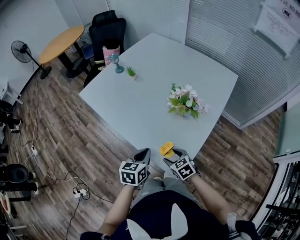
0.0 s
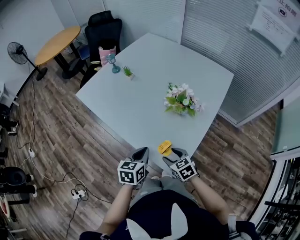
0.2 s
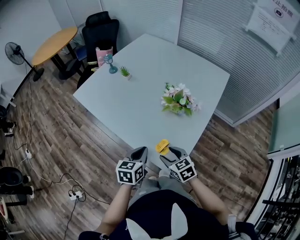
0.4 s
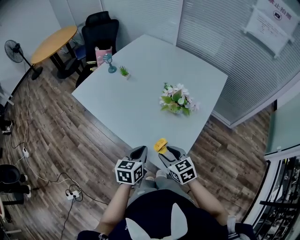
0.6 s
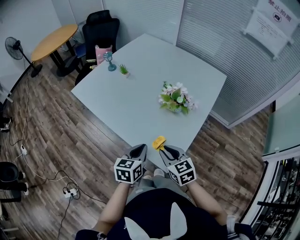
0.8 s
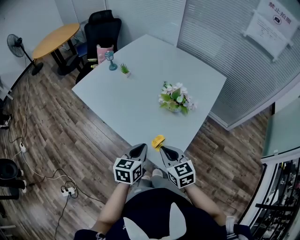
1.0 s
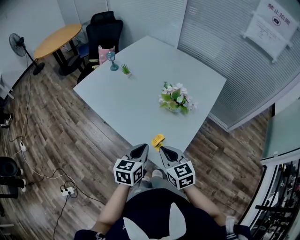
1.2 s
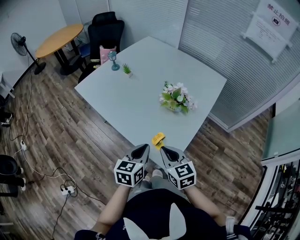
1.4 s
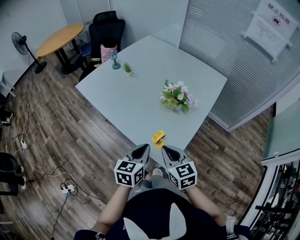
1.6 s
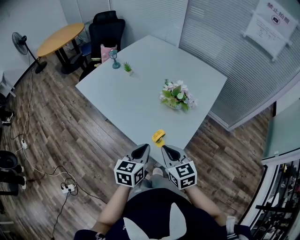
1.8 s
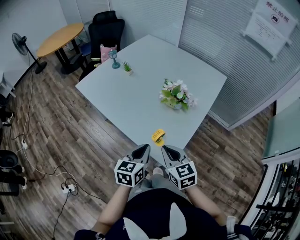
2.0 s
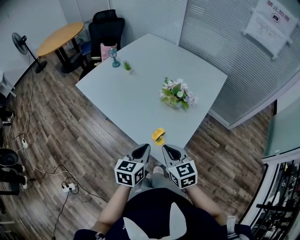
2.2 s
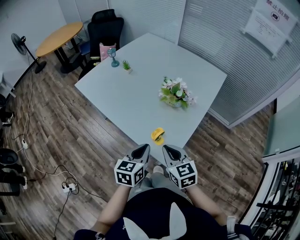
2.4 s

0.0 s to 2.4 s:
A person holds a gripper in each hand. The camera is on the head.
0.0 to 1.2 s: The left gripper heads upward, covering about 5 cm. The right gripper goes about 15 cm upward, turns by some 20 degrees, and closes its fingers.
1.2 to 2.4 s: The grippers move only a little.

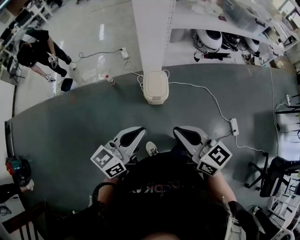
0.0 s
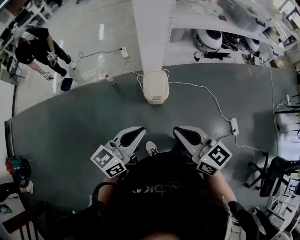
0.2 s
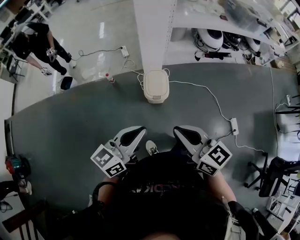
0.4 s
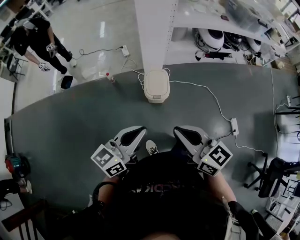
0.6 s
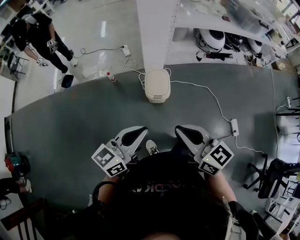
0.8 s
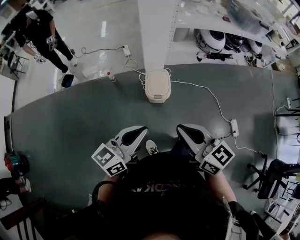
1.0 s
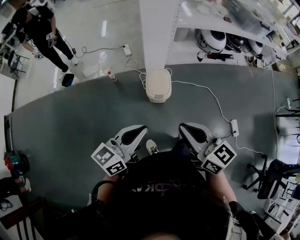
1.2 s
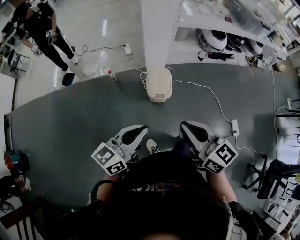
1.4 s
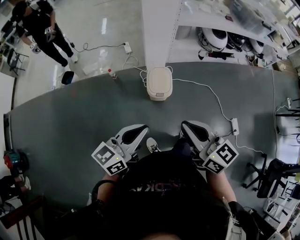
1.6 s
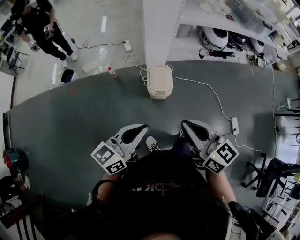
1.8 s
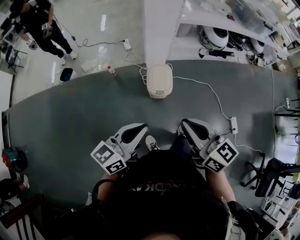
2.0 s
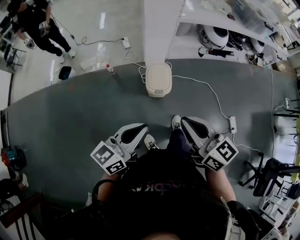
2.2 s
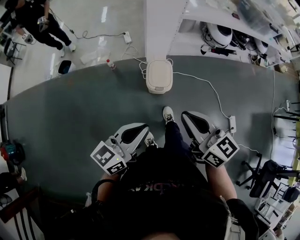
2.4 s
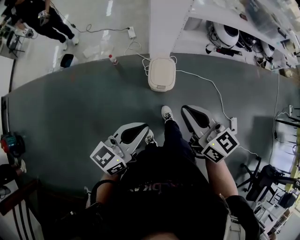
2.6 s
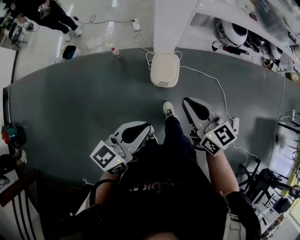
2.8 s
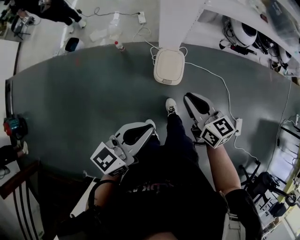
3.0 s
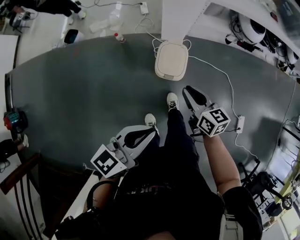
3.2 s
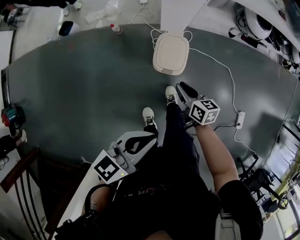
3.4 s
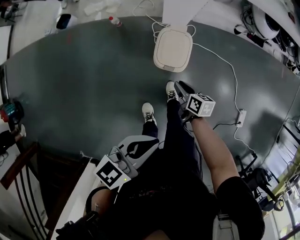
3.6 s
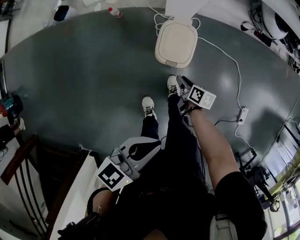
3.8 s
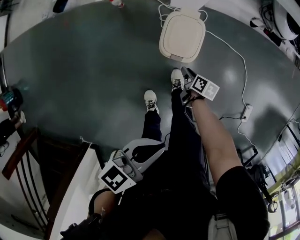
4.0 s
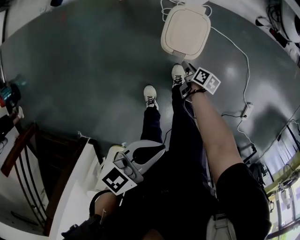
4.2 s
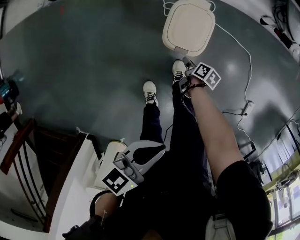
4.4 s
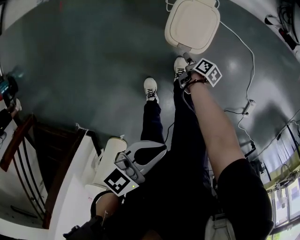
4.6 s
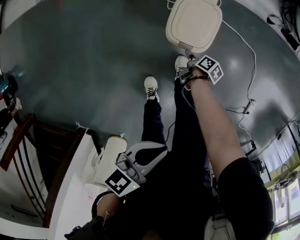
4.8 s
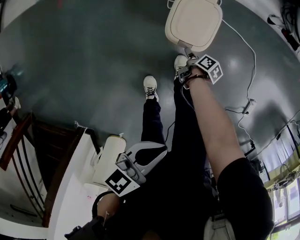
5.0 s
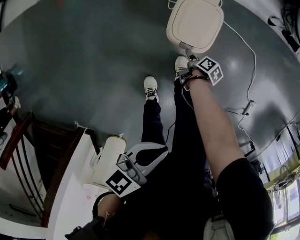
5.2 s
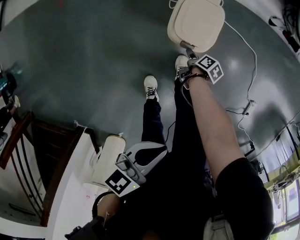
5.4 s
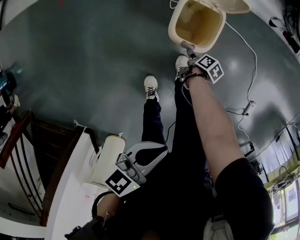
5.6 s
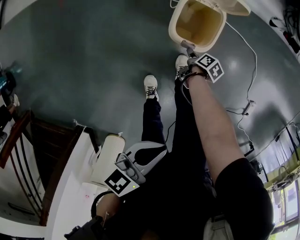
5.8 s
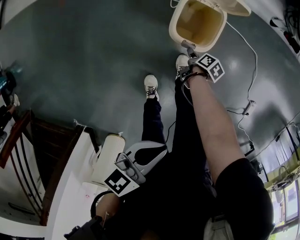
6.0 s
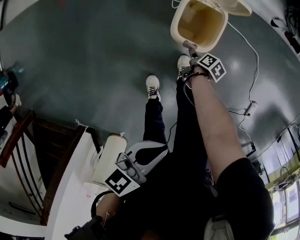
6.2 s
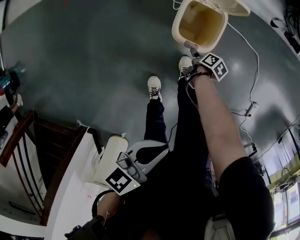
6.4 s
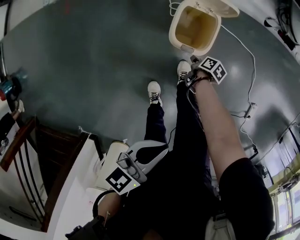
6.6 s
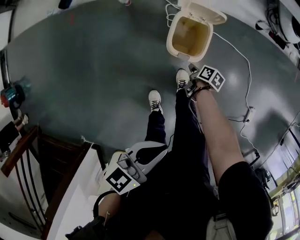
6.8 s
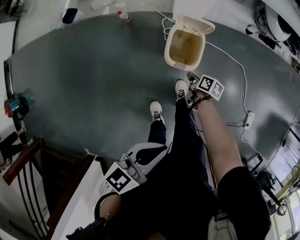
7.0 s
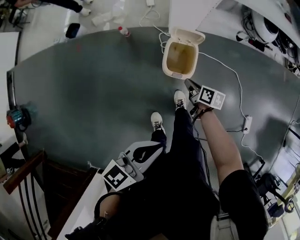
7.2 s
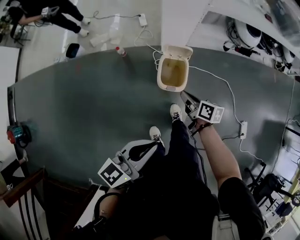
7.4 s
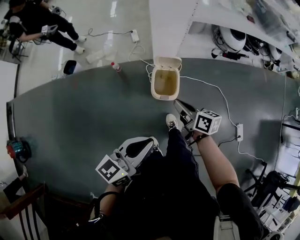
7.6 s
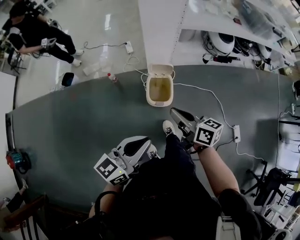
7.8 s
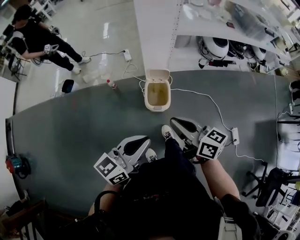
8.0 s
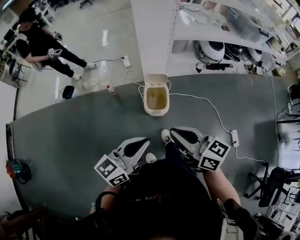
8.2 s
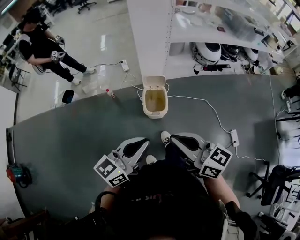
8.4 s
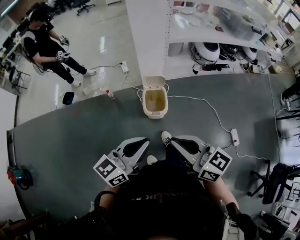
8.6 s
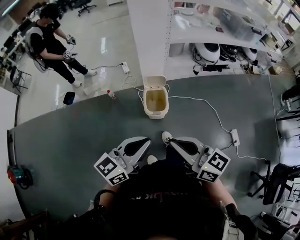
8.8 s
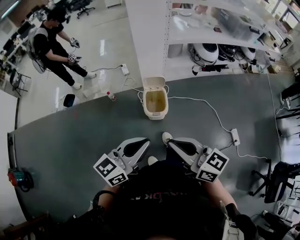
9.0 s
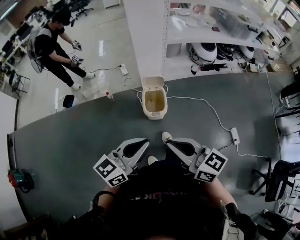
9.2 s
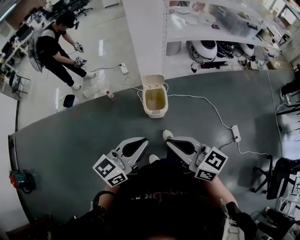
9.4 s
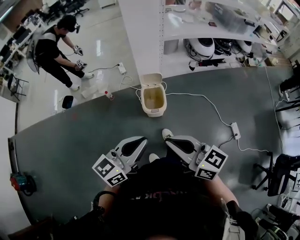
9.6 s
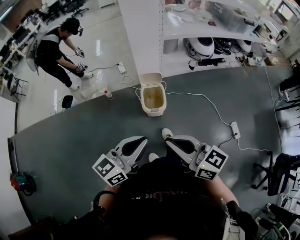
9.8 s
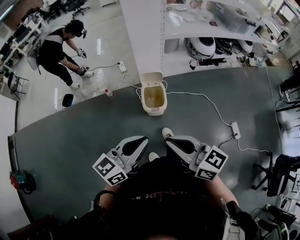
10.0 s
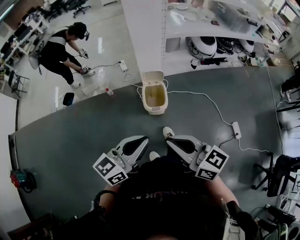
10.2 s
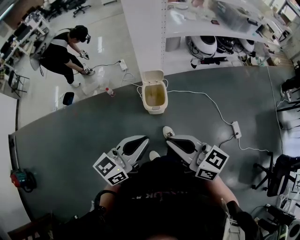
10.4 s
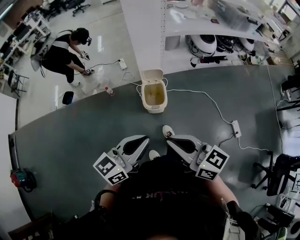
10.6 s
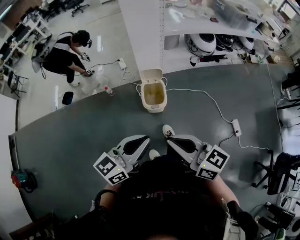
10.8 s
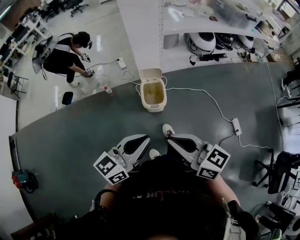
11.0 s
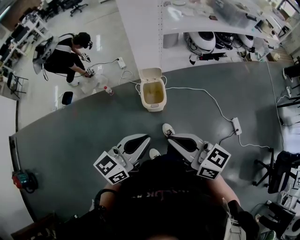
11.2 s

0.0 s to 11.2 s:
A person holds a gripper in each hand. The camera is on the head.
0.0 to 1.6 s: There are only small adjustments of the grippers.
1.6 to 3.2 s: The left gripper goes roughly 10 cm forward and to the right; the right gripper is displaced downward and forward by about 30 cm.
3.2 to 4.8 s: The left gripper is displaced downward by roughly 20 cm, and rotates some 20 degrees. The right gripper is displaced downward by about 50 cm, rolls clockwise, seen from behind, by roughly 60 degrees, and opens.
4.8 to 6.4 s: The grippers make only small movements.
6.4 to 8.0 s: The left gripper is displaced upward by about 25 cm, and swivels about 30 degrees. The right gripper moves upward, roughly 60 cm, tips its fingers upward by some 50 degrees, and closes its fingers.
8.0 to 9.6 s: The left gripper shifts some 5 cm backward. Meanwhile the right gripper shifts approximately 15 cm backward and upward.
9.6 to 11.2 s: The grippers stay close to where they were, moving slightly.

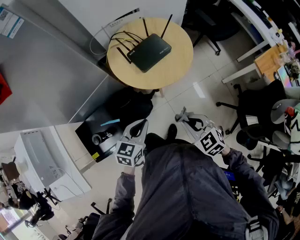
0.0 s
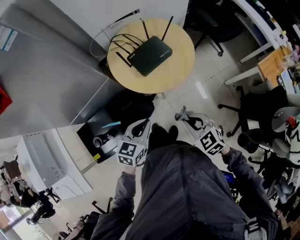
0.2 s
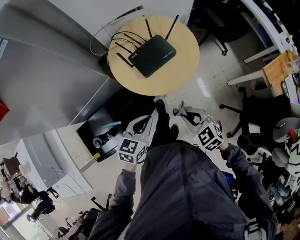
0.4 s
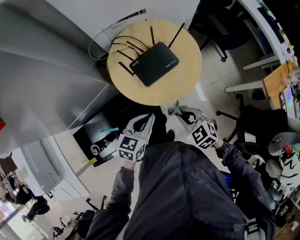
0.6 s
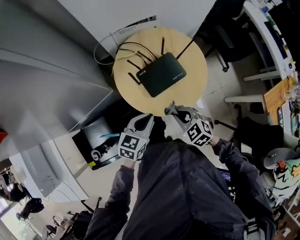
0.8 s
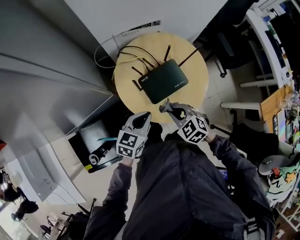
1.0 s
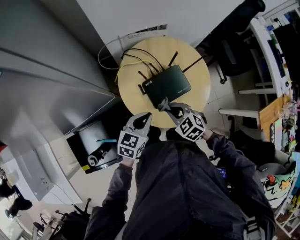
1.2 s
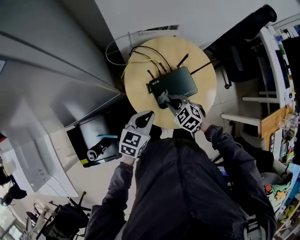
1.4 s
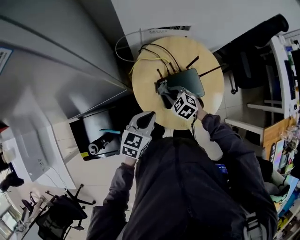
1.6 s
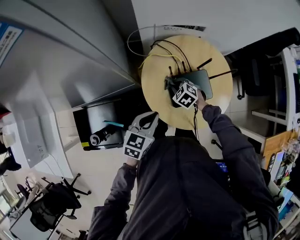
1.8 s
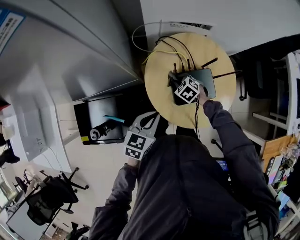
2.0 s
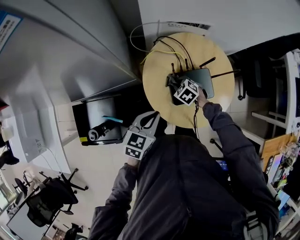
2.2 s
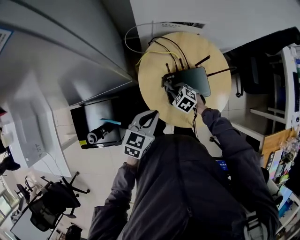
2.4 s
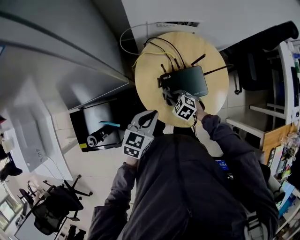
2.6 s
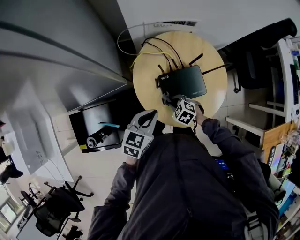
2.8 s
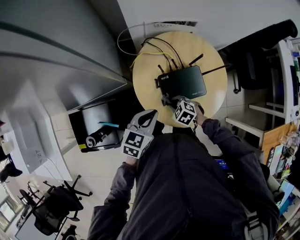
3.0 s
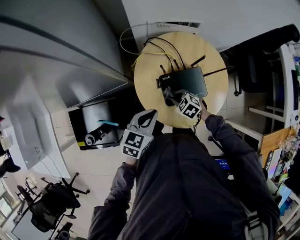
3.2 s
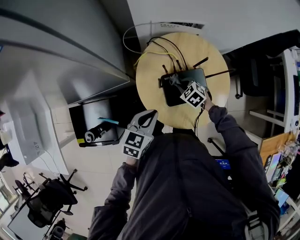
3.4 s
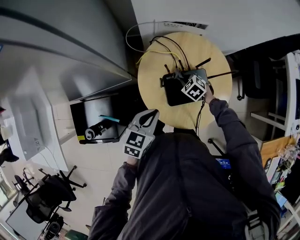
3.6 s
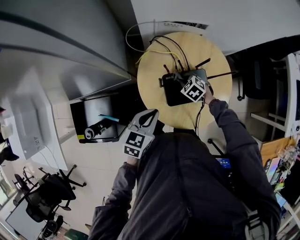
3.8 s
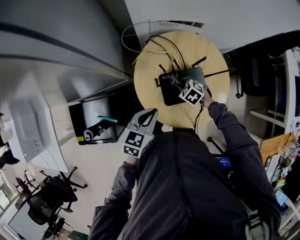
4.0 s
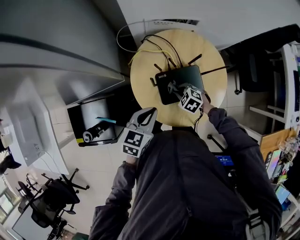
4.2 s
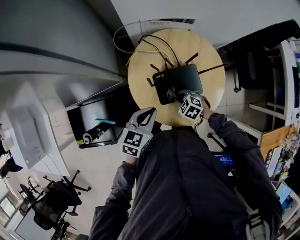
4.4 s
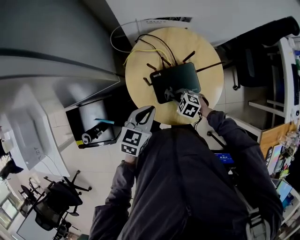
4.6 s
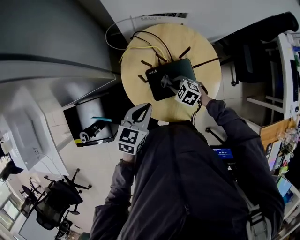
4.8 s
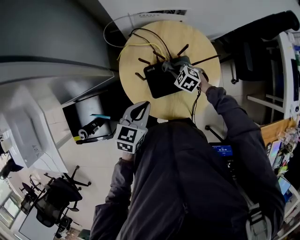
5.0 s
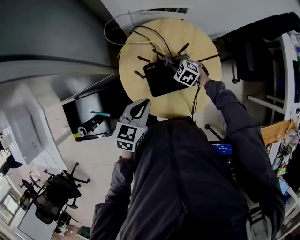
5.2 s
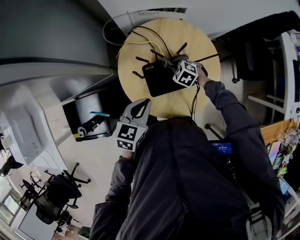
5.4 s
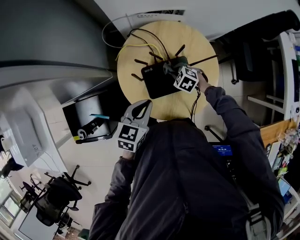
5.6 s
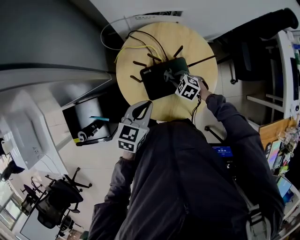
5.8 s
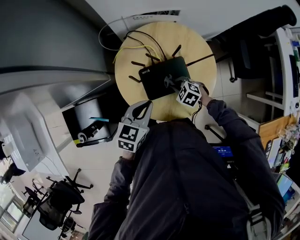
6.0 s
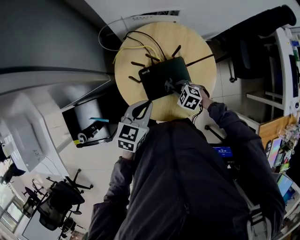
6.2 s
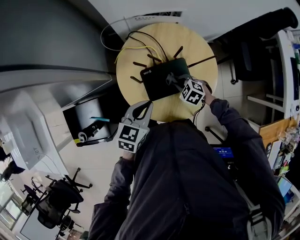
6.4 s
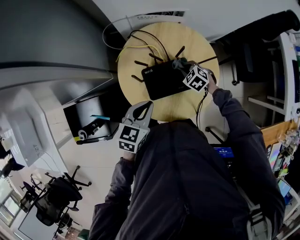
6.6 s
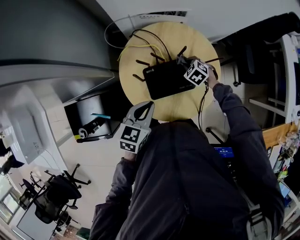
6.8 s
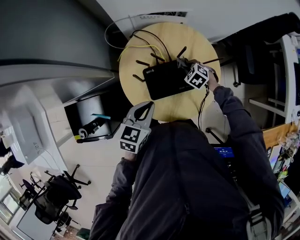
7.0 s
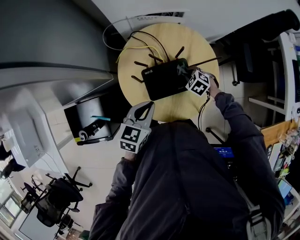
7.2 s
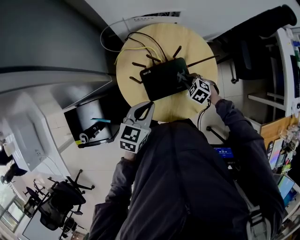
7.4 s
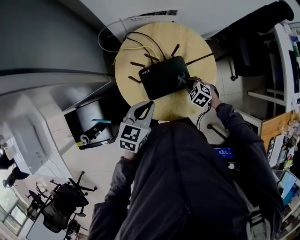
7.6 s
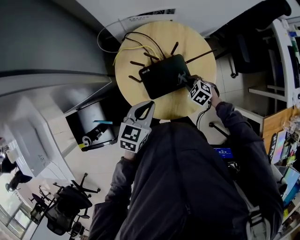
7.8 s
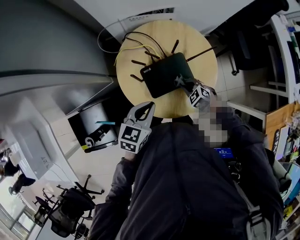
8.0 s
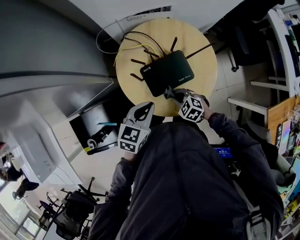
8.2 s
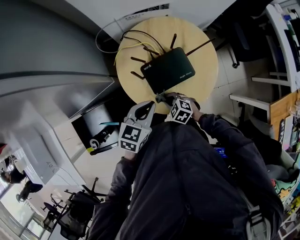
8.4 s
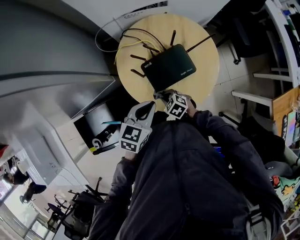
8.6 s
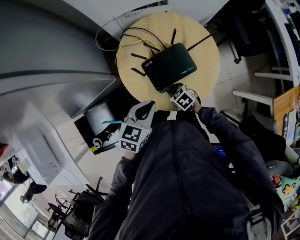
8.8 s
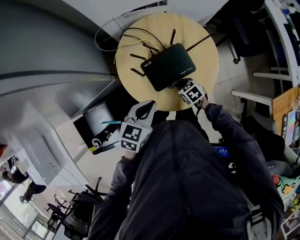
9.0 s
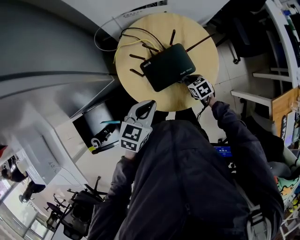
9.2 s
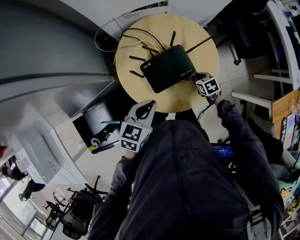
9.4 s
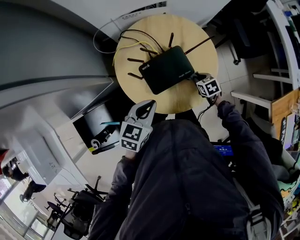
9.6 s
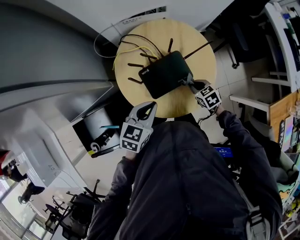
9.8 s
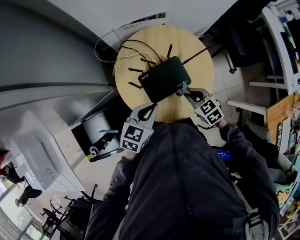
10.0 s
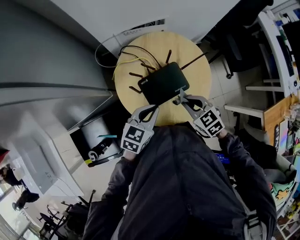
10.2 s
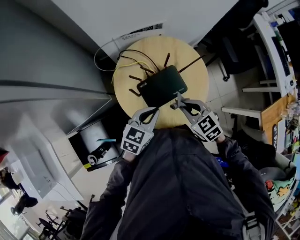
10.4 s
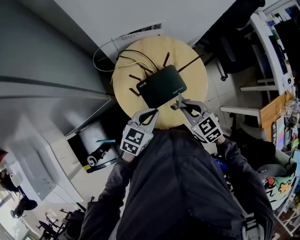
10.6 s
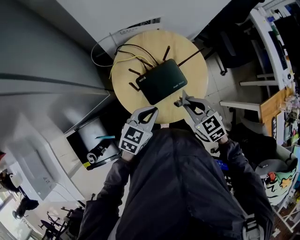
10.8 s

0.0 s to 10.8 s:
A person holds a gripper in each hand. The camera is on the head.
0.0 to 1.6 s: The right gripper heads forward, covering about 40 cm, and changes its angle by about 30 degrees, while the left gripper shifts roughly 25 cm forward.
1.6 to 3.0 s: The right gripper travels backward and downward by about 10 cm.
3.0 to 4.6 s: The right gripper is displaced to the right by about 5 cm, and moves some 15 cm forward and comes back.
4.6 to 6.2 s: The right gripper is displaced to the right by some 5 cm, and goes forward and returns, roughly 15 cm each way.
6.2 to 7.8 s: The right gripper heads to the right, covering about 5 cm, and travels forward and back again, roughly 15 cm each way.
7.8 to 9.2 s: The right gripper travels to the left and back again, some 15 cm each way, and swivels roughly 40 degrees.
9.2 to 10.8 s: The right gripper shifts approximately 20 cm upward, and changes its angle by roughly 30 degrees.
